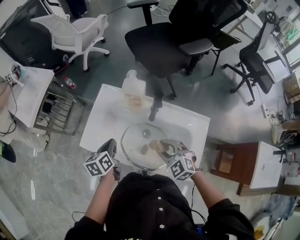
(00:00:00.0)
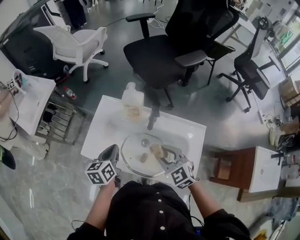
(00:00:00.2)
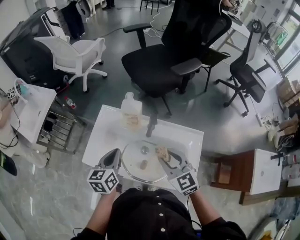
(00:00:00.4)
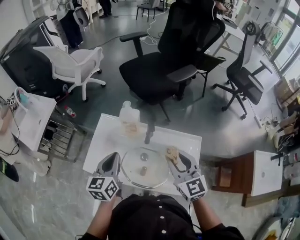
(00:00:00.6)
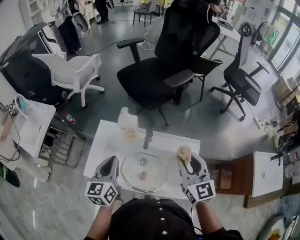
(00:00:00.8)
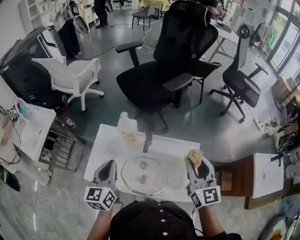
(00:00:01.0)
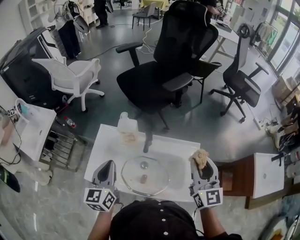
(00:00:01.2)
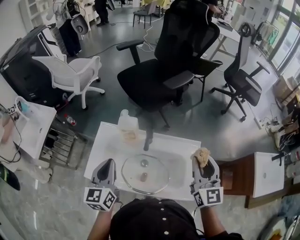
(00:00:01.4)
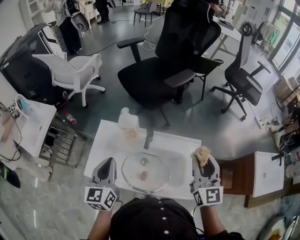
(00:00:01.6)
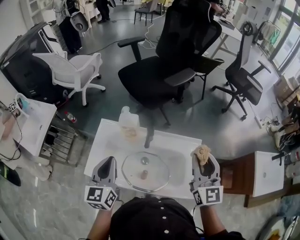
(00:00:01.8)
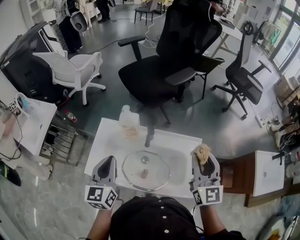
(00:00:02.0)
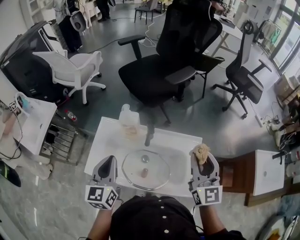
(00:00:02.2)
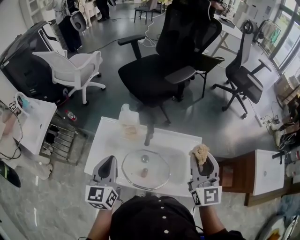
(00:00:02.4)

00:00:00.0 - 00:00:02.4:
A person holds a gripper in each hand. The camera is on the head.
00:00:00.0 - 00:00:01.2: The left gripper travels upward by approximately 20 cm, and changes its angle by approximately 40 degrees, while the right gripper travels upward and to the right by approximately 30 cm, and angles its fingers upward, by some 40 degrees.
00:00:01.2 - 00:00:02.4: The grippers move only a little.

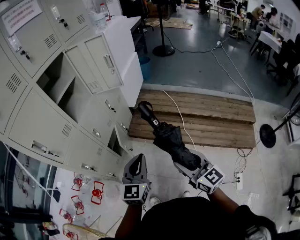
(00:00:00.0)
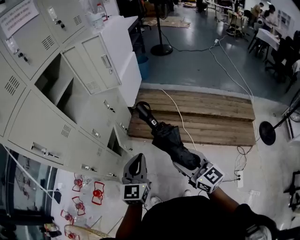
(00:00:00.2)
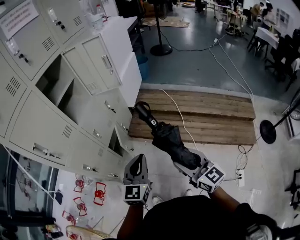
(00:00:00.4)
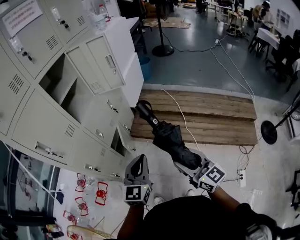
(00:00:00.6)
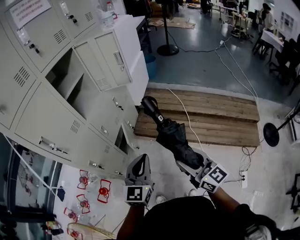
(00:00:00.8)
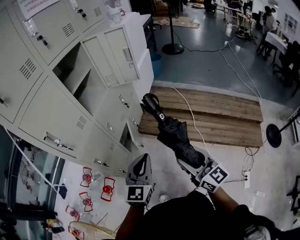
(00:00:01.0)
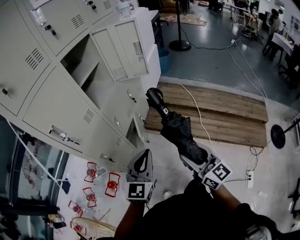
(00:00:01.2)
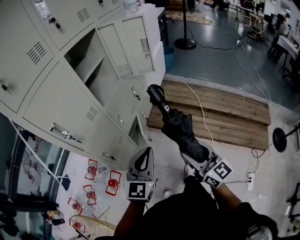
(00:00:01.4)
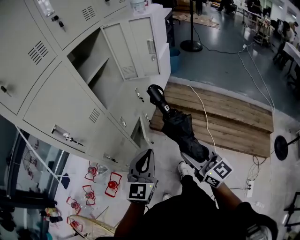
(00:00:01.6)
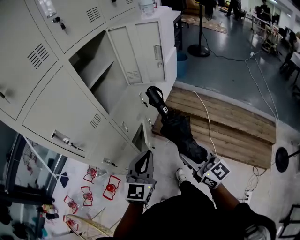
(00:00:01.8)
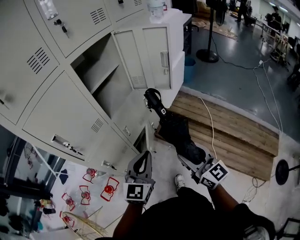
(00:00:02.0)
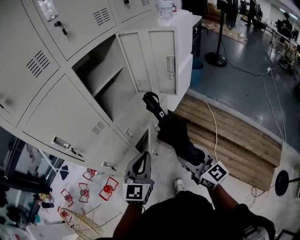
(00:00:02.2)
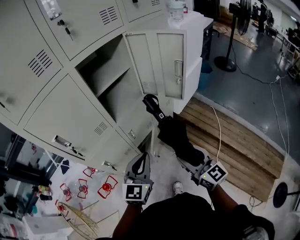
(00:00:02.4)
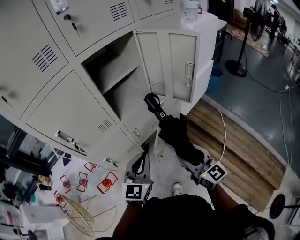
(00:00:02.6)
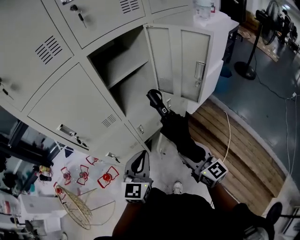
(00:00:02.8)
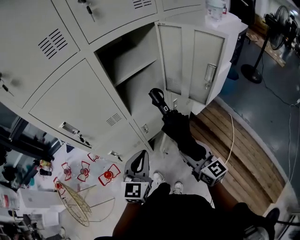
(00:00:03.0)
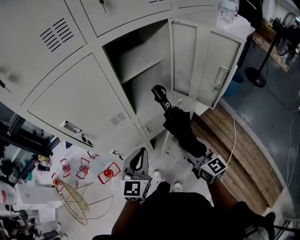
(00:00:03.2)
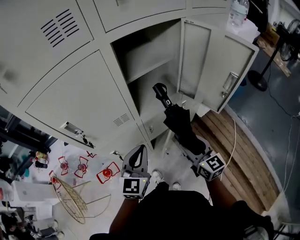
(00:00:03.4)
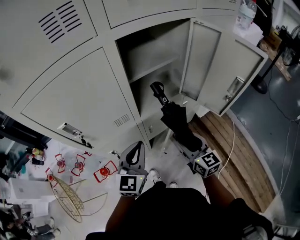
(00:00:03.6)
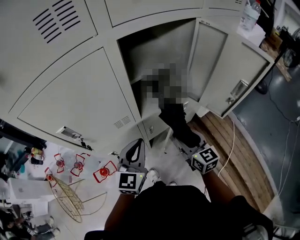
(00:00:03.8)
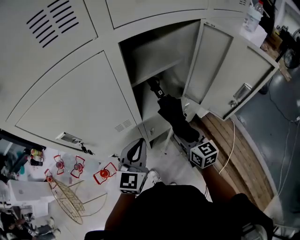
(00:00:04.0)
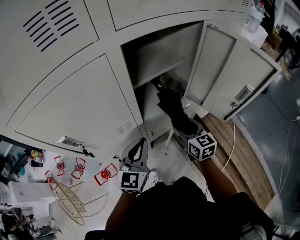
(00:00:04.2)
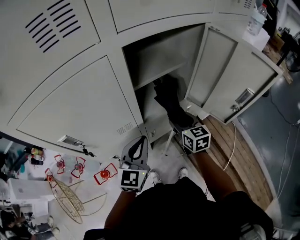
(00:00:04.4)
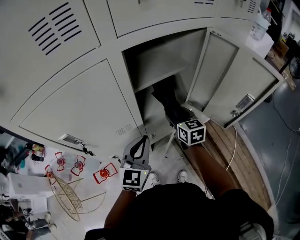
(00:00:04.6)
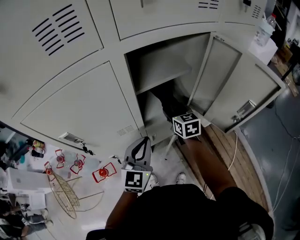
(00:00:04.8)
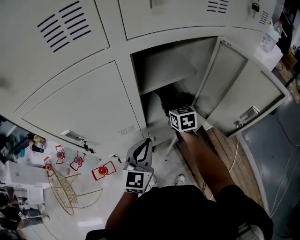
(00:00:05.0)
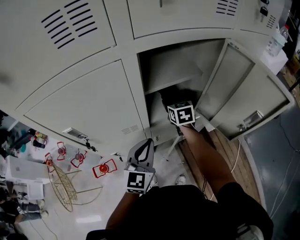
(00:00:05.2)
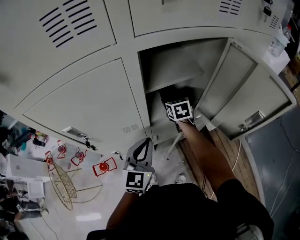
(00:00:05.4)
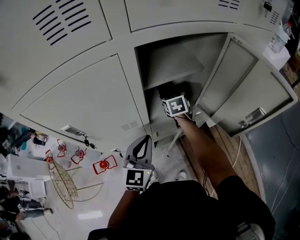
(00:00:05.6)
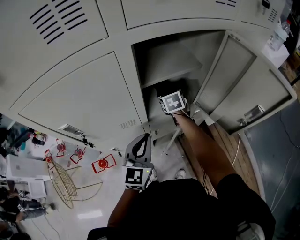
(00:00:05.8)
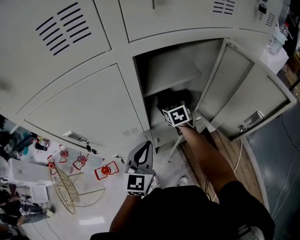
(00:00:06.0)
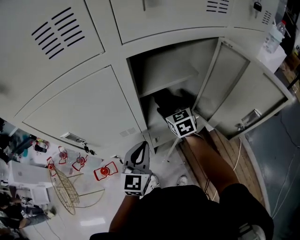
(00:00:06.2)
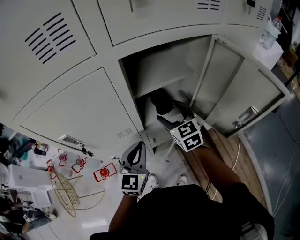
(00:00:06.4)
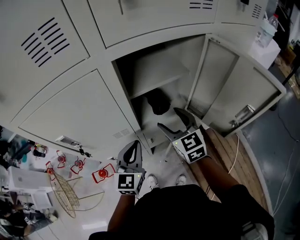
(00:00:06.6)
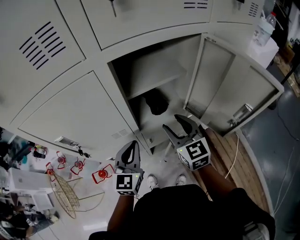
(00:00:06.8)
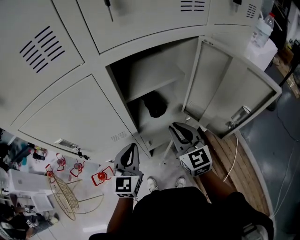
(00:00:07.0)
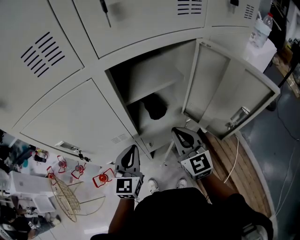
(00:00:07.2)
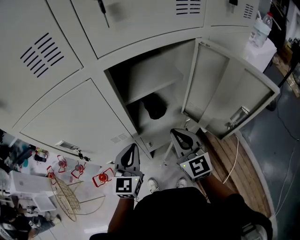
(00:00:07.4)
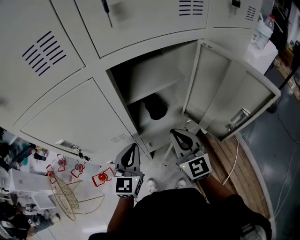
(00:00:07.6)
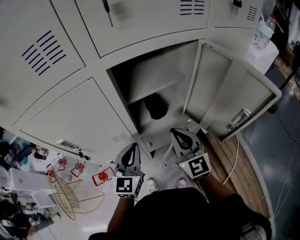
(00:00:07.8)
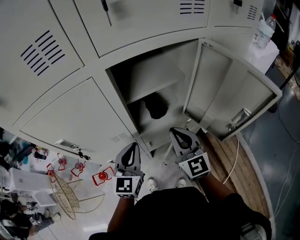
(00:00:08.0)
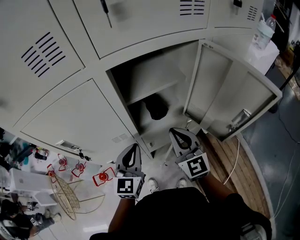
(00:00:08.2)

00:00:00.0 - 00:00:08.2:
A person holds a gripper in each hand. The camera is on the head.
00:00:00.0 - 00:00:01.6: The left gripper goes approximately 15 cm to the left. Meanwhile the right gripper moves to the left and forward, about 15 cm.
00:00:01.6 - 00:00:03.2: The left gripper ends up some 20 cm from where it was, and changes its angle by roughly 40 degrees; the right gripper changes place by some 30 cm, and rotates approximately 30 degrees.
00:00:03.2 - 00:00:05.0: The right gripper travels forward by some 30 cm, and turns by some 20 degrees; the left gripper heads forward, covering some 10 cm.
00:00:05.0 - 00:00:06.6: The right gripper is displaced backward and upward by some 10 cm, and changes its angle by some 20 degrees.
00:00:06.6 - 00:00:08.2: The right gripper is displaced backward by about 5 cm, and closes up.

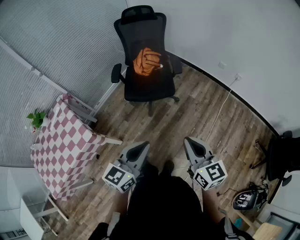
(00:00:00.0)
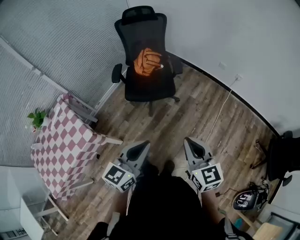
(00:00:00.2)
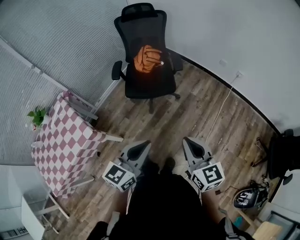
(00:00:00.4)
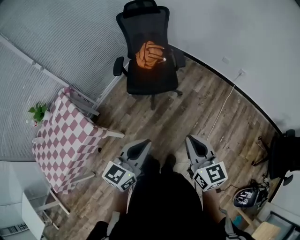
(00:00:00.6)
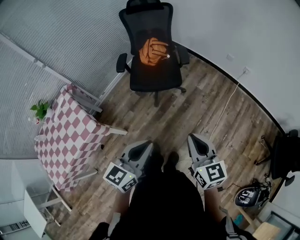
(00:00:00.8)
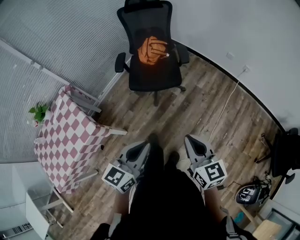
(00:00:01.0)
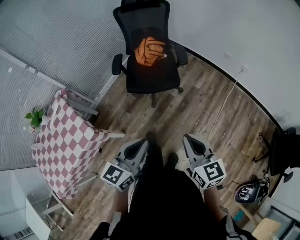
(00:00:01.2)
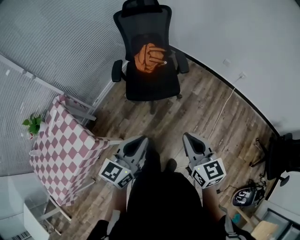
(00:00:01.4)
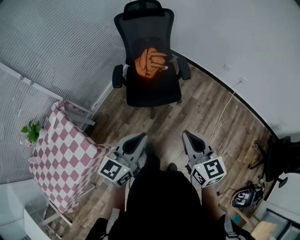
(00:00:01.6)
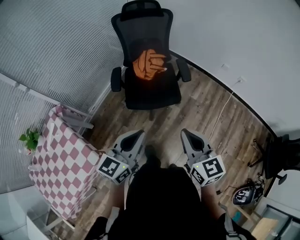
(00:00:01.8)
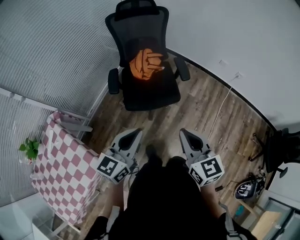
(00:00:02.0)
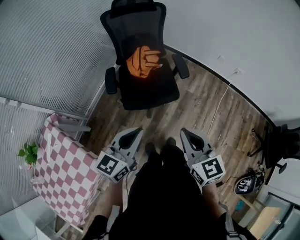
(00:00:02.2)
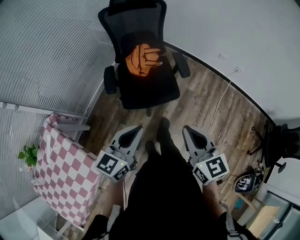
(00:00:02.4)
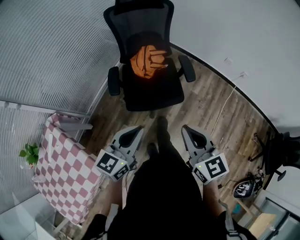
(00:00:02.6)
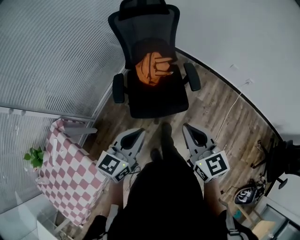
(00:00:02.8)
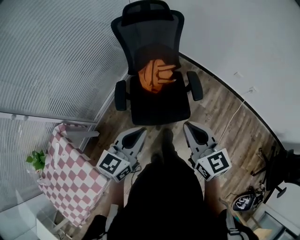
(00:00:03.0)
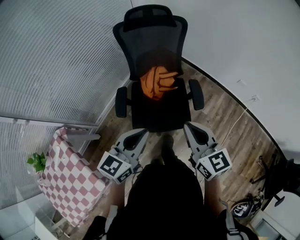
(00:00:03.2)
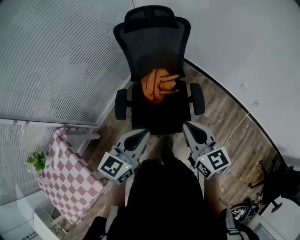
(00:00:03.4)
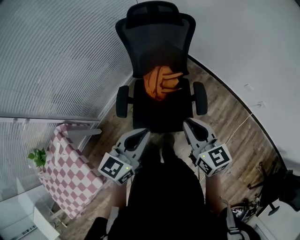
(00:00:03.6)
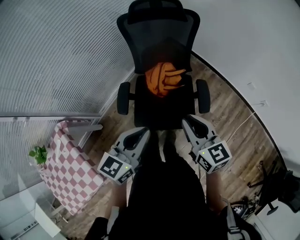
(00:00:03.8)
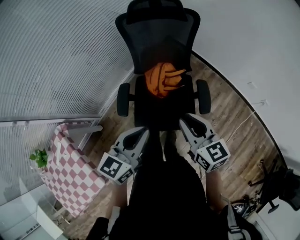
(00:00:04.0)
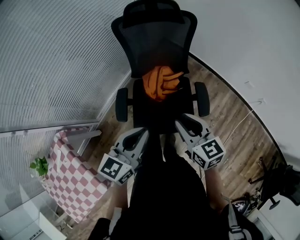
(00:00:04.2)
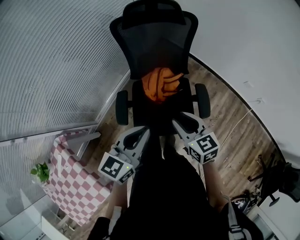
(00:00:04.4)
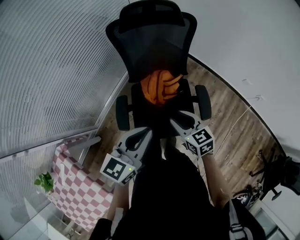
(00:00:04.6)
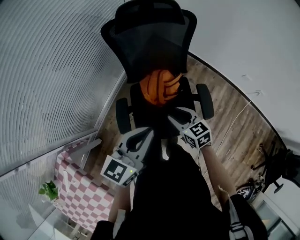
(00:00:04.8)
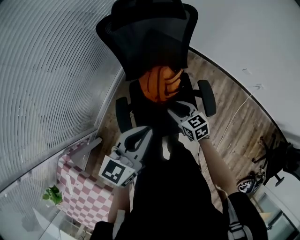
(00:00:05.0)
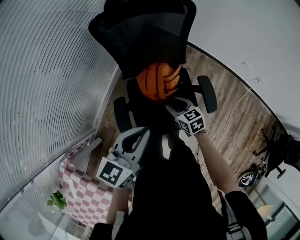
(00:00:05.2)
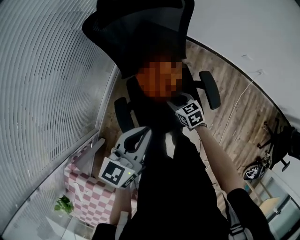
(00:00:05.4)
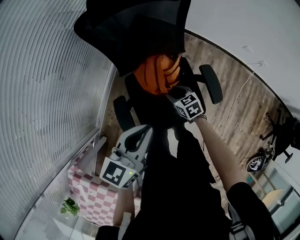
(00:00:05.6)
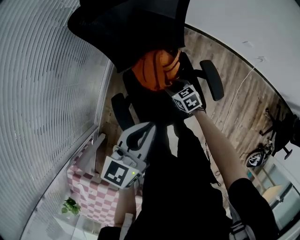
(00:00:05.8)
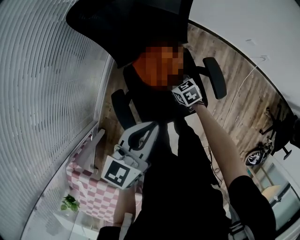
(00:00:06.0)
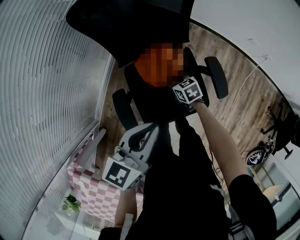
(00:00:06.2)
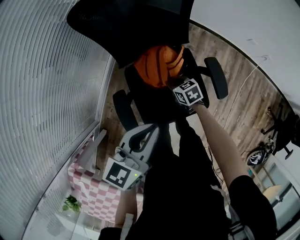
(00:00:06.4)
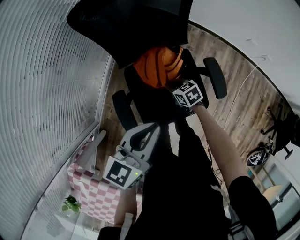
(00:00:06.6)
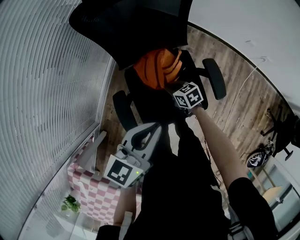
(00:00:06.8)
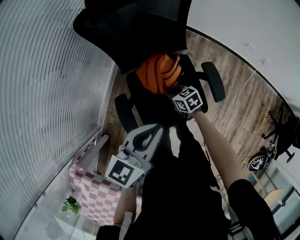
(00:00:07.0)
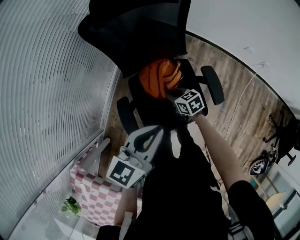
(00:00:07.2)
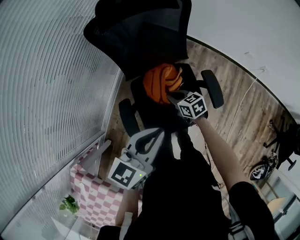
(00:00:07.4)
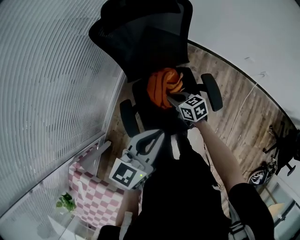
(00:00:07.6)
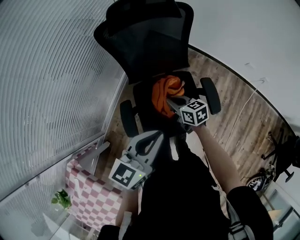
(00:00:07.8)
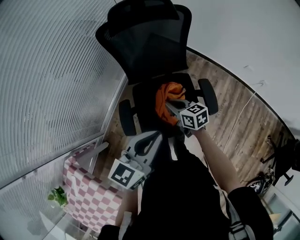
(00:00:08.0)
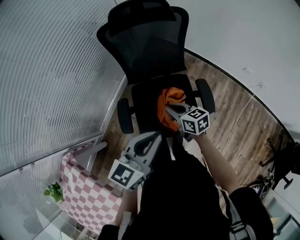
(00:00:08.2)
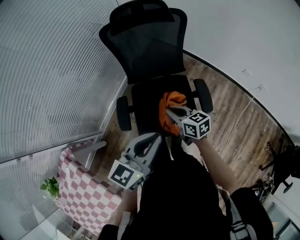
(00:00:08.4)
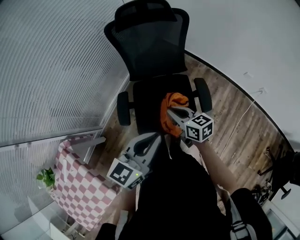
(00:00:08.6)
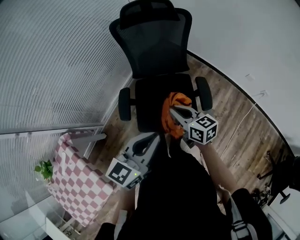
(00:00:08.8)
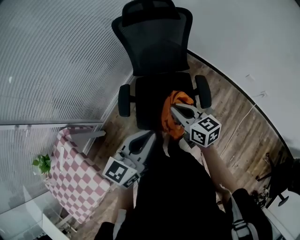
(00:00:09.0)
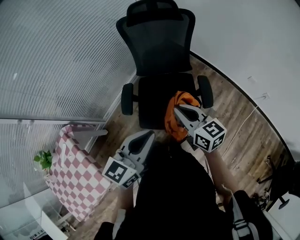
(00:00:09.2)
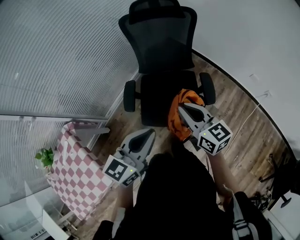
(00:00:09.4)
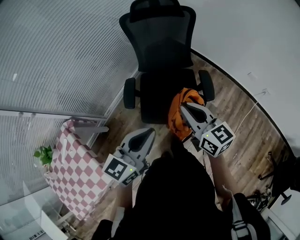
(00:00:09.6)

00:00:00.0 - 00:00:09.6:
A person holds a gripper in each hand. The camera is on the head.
00:00:00.0 - 00:00:01.6: Both grippers move forward and to the left, roughly 20 cm.
00:00:01.6 - 00:00:03.2: Both grippers travel together forward, some 30 cm.
00:00:03.2 - 00:00:04.8: The left gripper shifts approximately 20 cm forward, while the right gripper heads downward, forward and to the left, covering approximately 30 cm, swivels about 30 degrees, and opens.
00:00:04.8 - 00:00:06.4: The left gripper is displaced downward and forward by some 10 cm, while the right gripper shifts approximately 25 cm downward and forward, and turns by approximately 20 degrees.
00:00:06.4 - 00:00:08.0: The left gripper heads upward, backward and to the right, covering approximately 10 cm; the right gripper moves upward, about 20 cm, and rotates roughly 20 degrees.
00:00:08.0 - 00:00:09.6: The left gripper shifts about 20 cm backward. The right gripper heads backward and upward, covering about 30 cm, and turns by about 30 degrees.

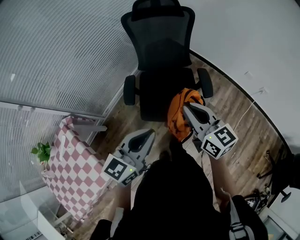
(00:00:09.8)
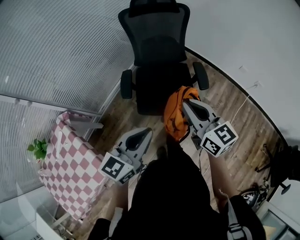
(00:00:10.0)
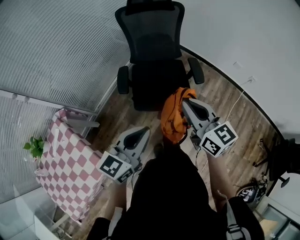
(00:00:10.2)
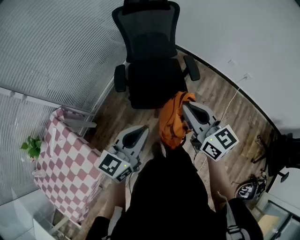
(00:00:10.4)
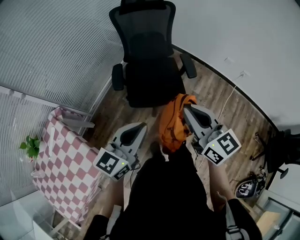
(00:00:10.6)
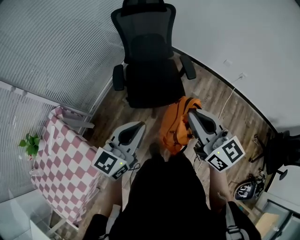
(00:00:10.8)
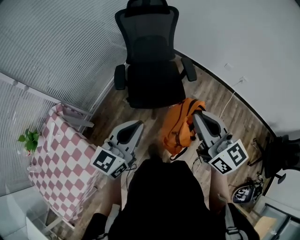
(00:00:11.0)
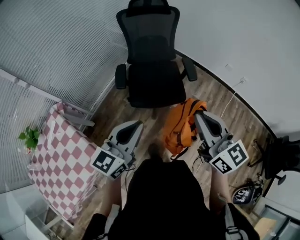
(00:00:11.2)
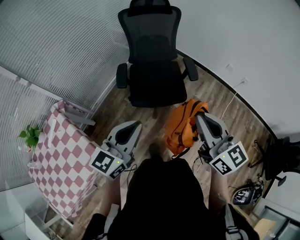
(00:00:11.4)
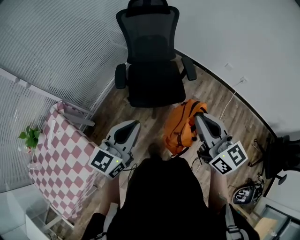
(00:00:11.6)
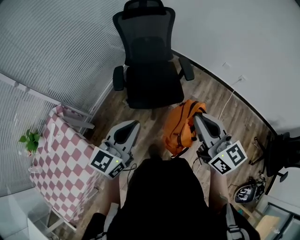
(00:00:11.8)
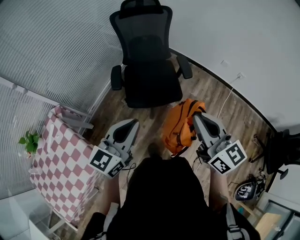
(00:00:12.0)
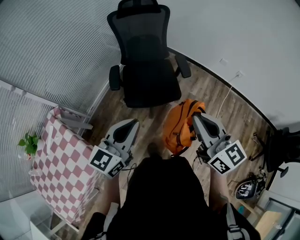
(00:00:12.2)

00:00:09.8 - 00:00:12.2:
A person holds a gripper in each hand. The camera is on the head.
00:00:09.8 - 00:00:11.0: The left gripper travels backward by approximately 15 cm. The right gripper goes approximately 25 cm backward and upward.
00:00:11.0 - 00:00:12.2: The grippers stay close to where they were, moving slightly.
